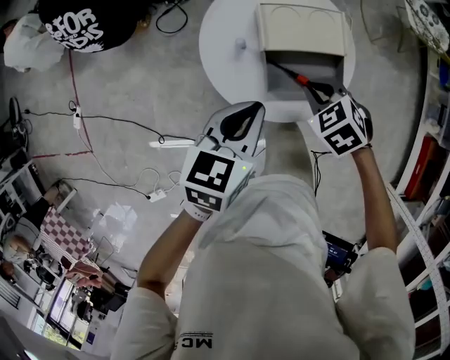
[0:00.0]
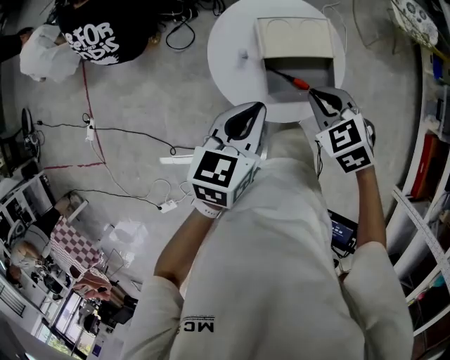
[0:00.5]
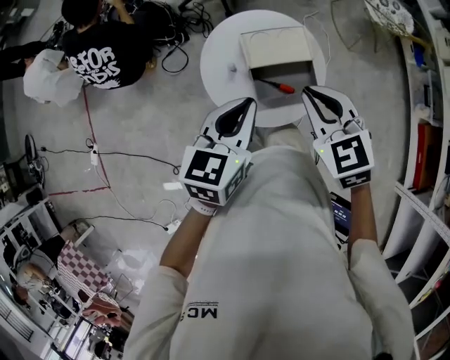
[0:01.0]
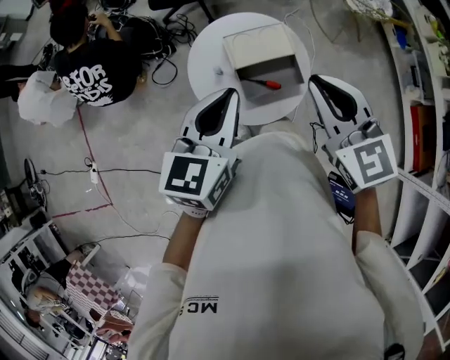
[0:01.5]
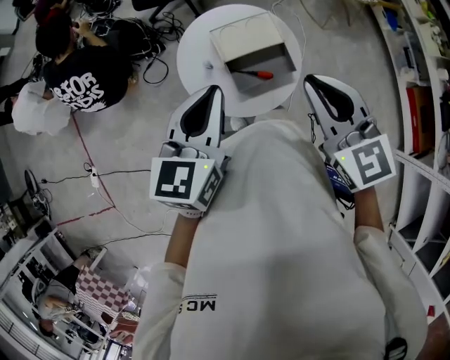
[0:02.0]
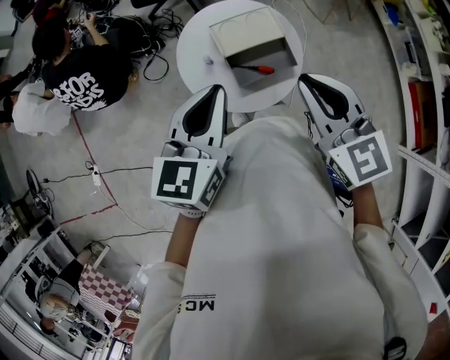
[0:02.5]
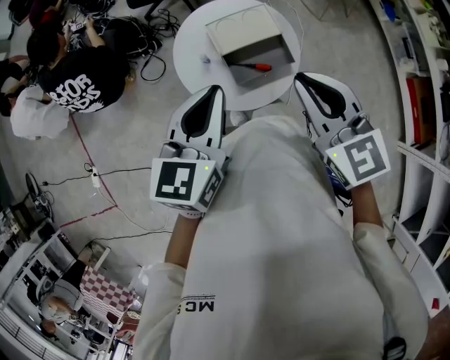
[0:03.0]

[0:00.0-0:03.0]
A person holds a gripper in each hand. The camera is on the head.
0:00.0 to 0:01.5: The right gripper is displaced upward by some 30 cm, and angles its fingers upward, by roughly 50 degrees. Meanwhile the left gripper heads upward, covering approximately 20 cm, and turns by approximately 20 degrees.
0:01.5 to 0:03.0: There are only small adjustments of the grippers.

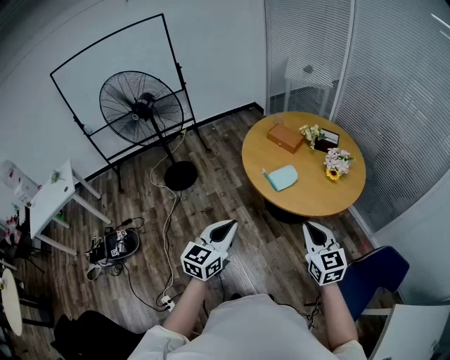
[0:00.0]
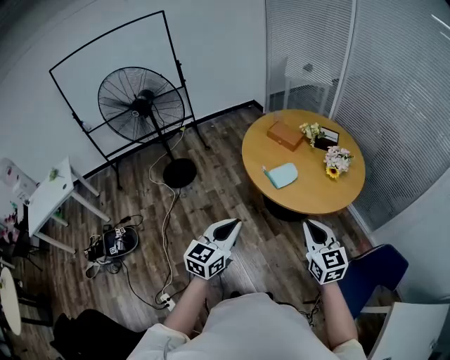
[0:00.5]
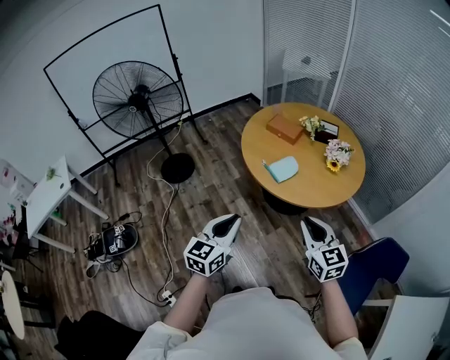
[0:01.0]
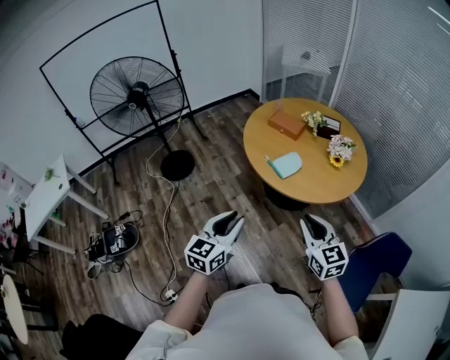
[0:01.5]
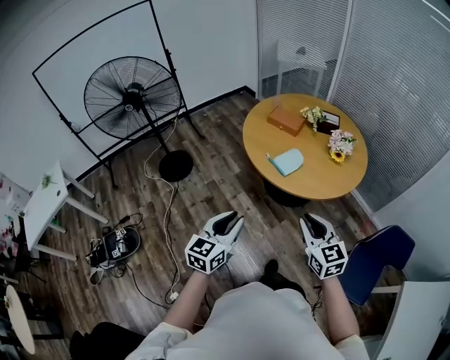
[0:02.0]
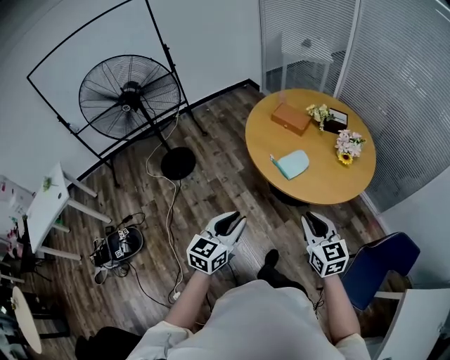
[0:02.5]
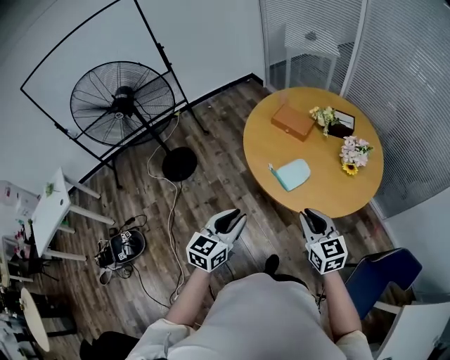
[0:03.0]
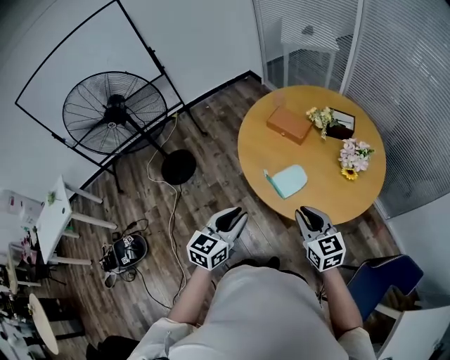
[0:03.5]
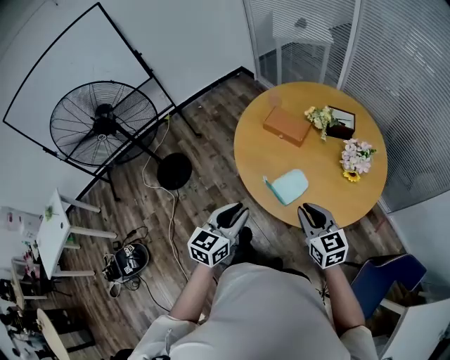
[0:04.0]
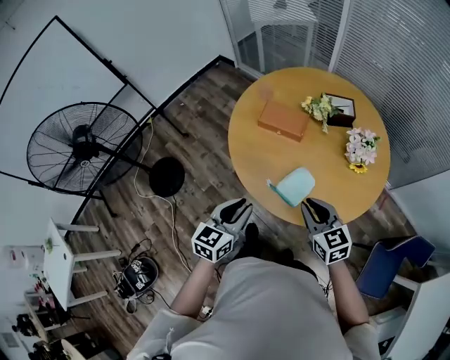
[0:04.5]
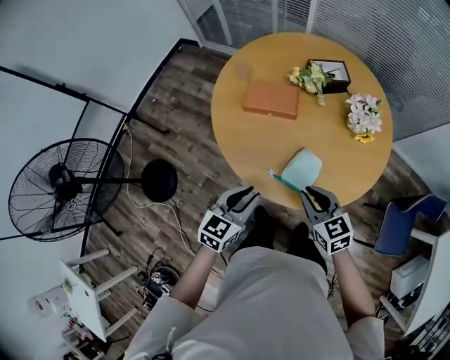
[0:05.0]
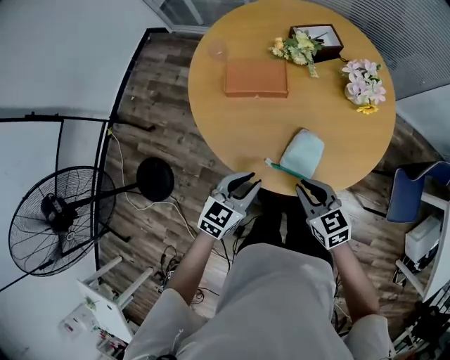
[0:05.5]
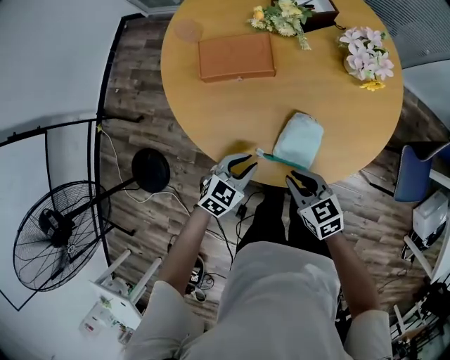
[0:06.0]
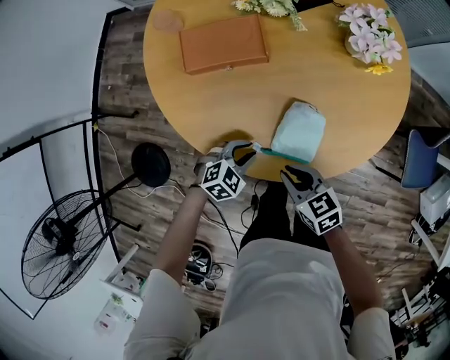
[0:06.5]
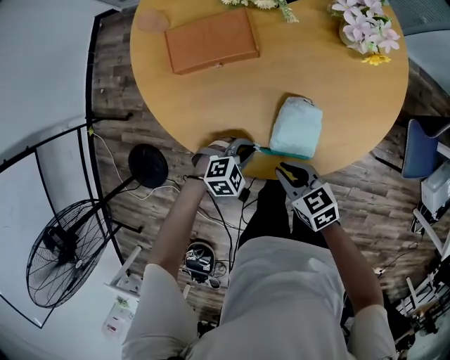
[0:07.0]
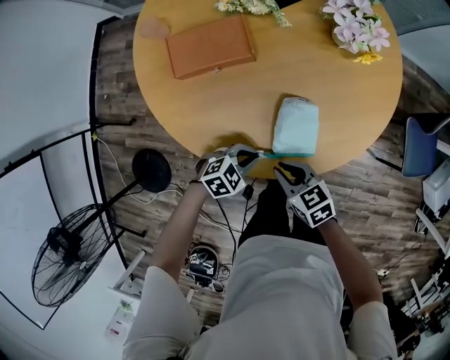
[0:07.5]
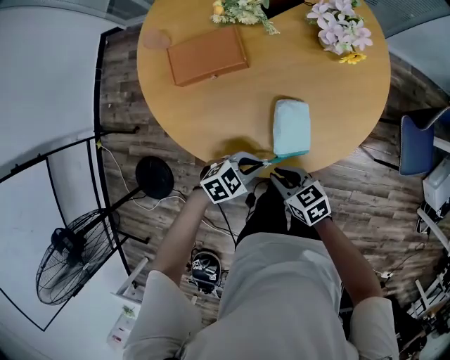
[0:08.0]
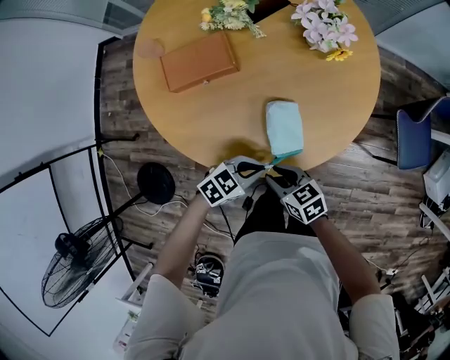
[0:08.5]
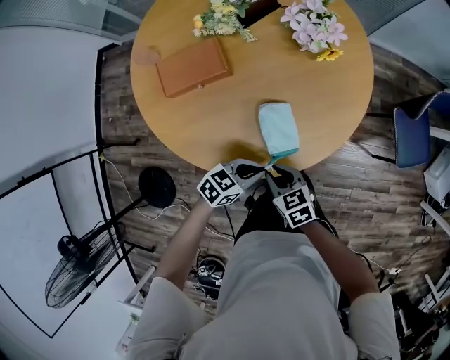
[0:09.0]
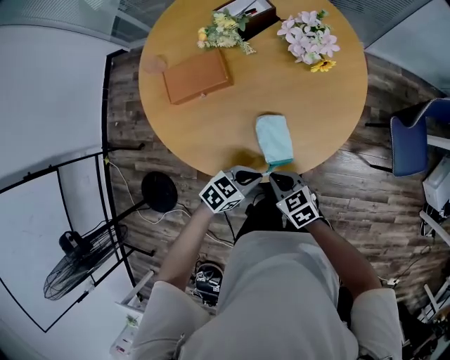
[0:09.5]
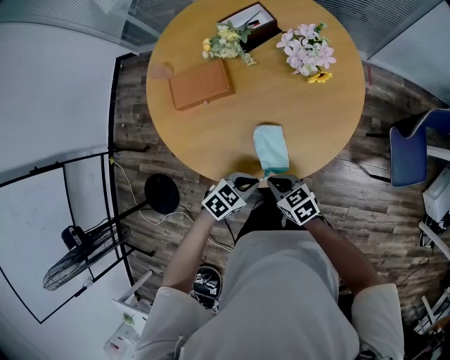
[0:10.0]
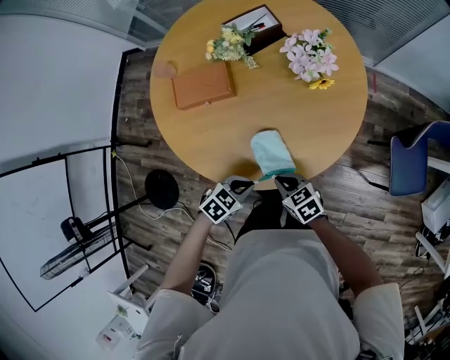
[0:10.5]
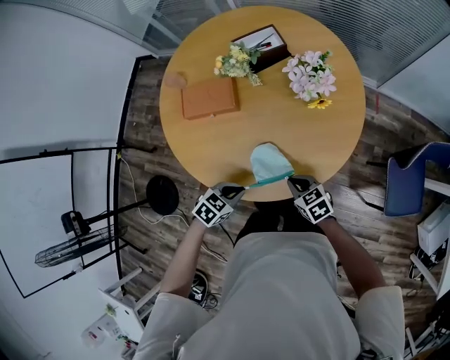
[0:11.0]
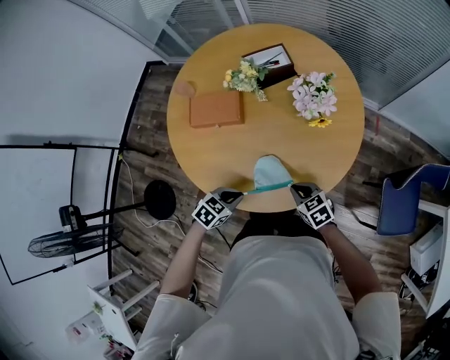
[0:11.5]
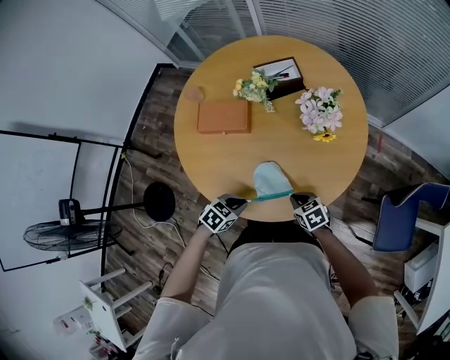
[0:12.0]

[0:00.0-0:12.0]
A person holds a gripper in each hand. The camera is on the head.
0:00.0 to 0:02.0: The grippers both shift to the left by roughly 10 cm.
0:02.0 to 0:04.0: The grippers both shift forward by about 35 cm.
0:04.0 to 0:06.0: The two grippers go some 30 cm downward. The right gripper turns by approximately 30 degrees; the left gripper swivels some 60 degrees.
0:06.0 to 0:08.0: The left gripper goes downward and returns, about 10 cm each way, and changes its angle by about 30 degrees, while the right gripper moves about 5 cm.
0:08.0 to 0:10.0: The left gripper shifts by approximately 10 cm. Meanwhile the right gripper shifts by roughly 10 cm.
0:10.0 to 0:12.0: The right gripper moves roughly 15 cm. Meanwhile the left gripper turns by about 20 degrees.

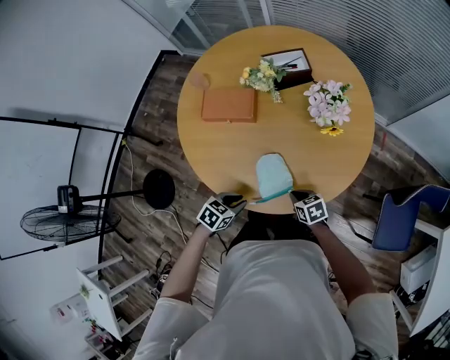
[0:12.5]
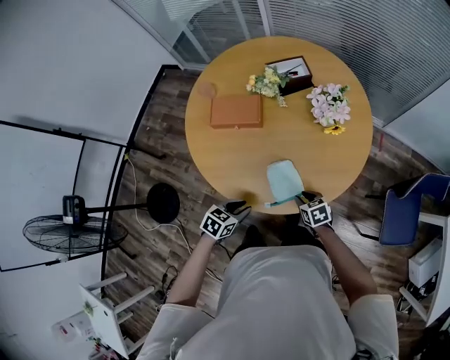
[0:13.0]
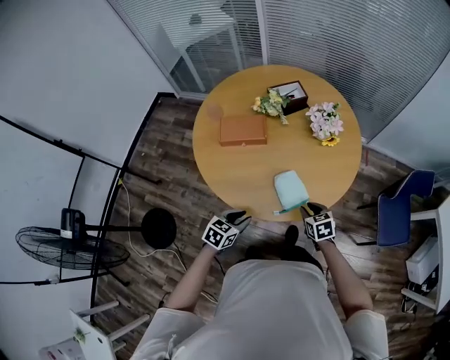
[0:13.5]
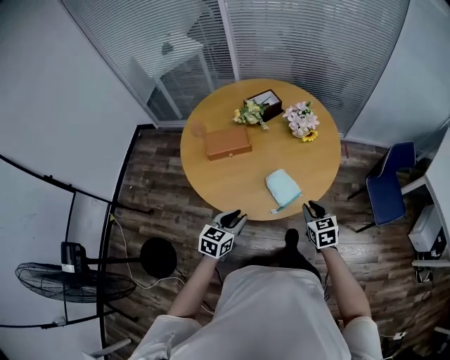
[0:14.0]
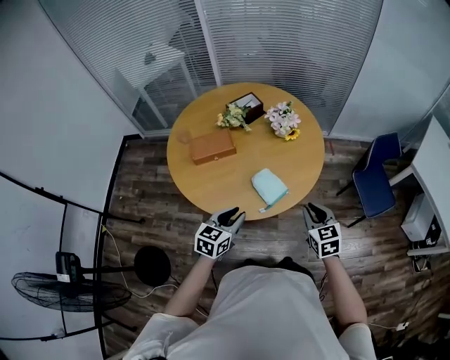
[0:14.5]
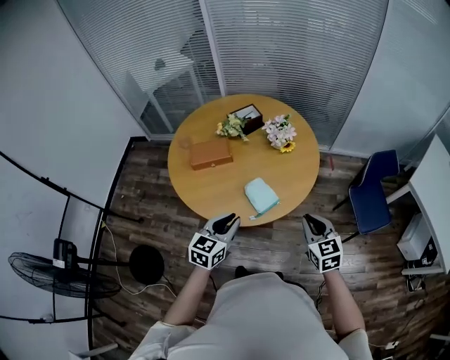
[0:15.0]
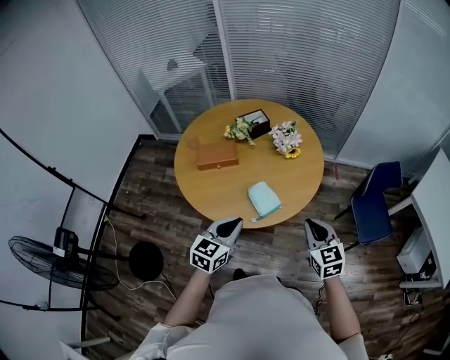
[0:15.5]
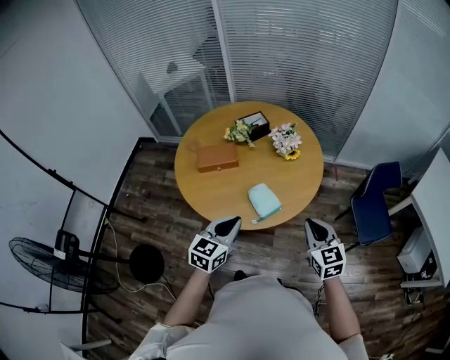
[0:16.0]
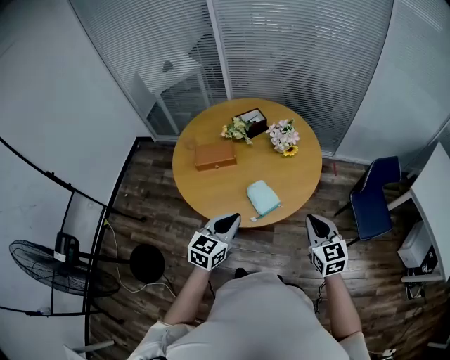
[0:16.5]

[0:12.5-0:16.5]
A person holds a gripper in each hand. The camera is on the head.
0:12.5 to 0:14.5: Both grippers move upward, some 25 cm. The left gripper turns by some 30 degrees. Meanwhile the right gripper swivels about 50 degrees.
0:14.5 to 0:16.5: The two grippers go about 10 cm upward and to the right. The left gripper closes its fingers.

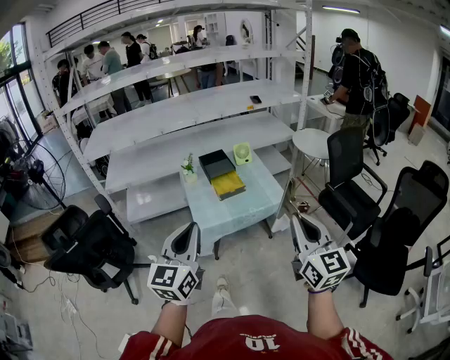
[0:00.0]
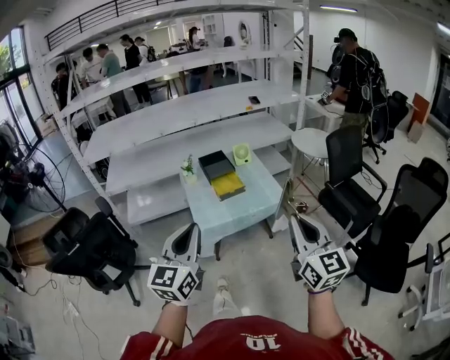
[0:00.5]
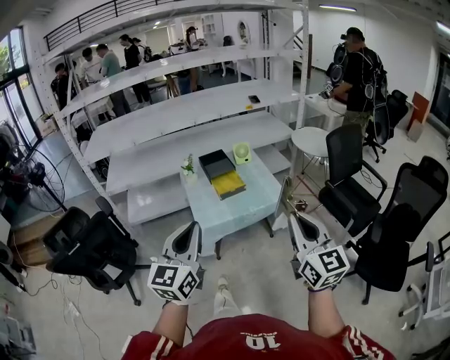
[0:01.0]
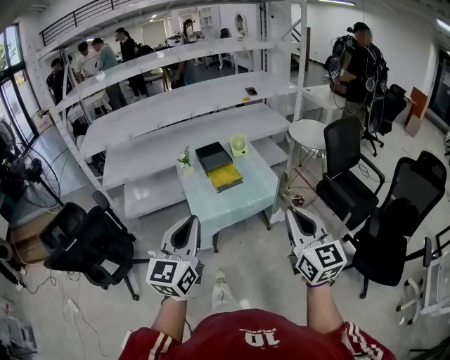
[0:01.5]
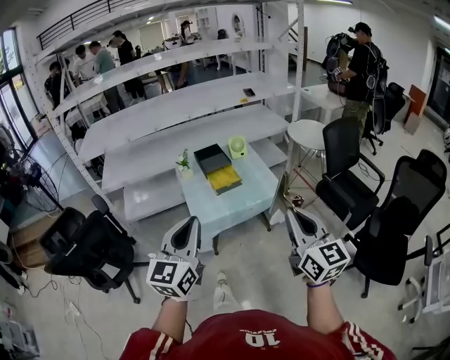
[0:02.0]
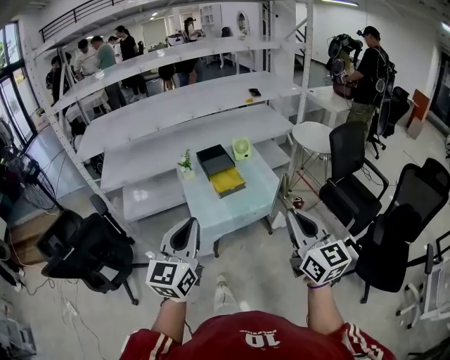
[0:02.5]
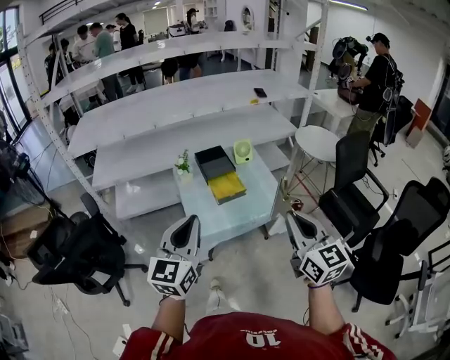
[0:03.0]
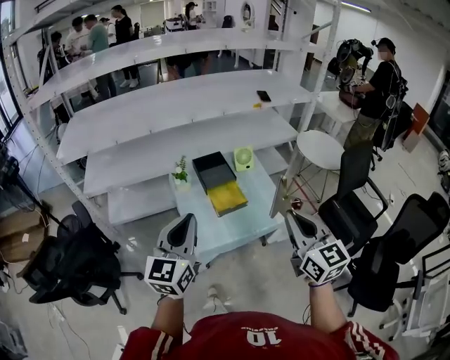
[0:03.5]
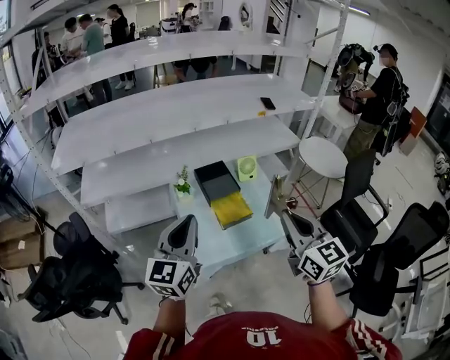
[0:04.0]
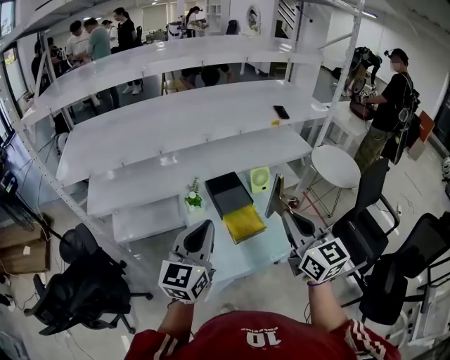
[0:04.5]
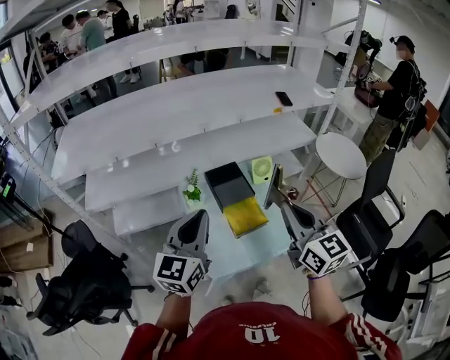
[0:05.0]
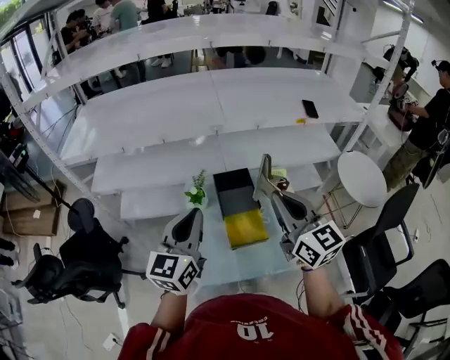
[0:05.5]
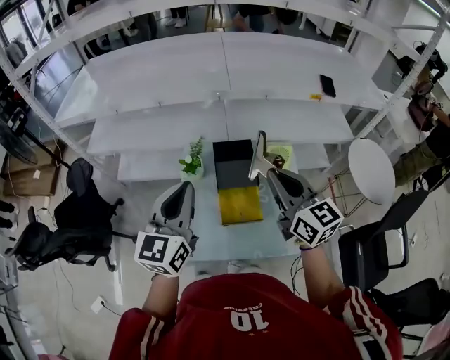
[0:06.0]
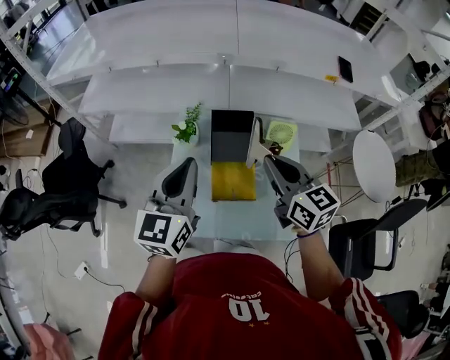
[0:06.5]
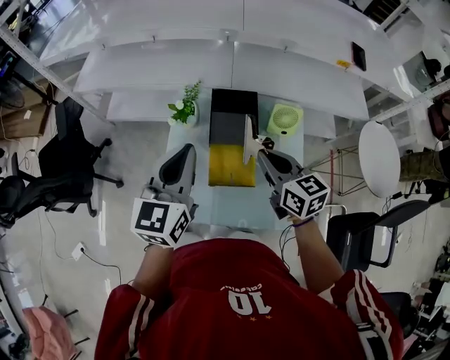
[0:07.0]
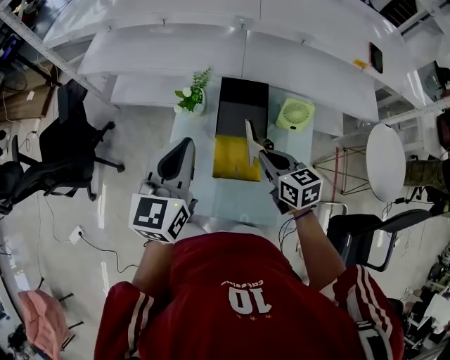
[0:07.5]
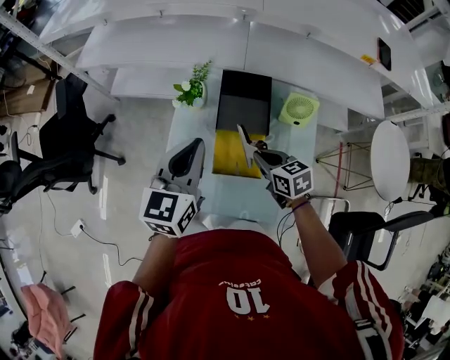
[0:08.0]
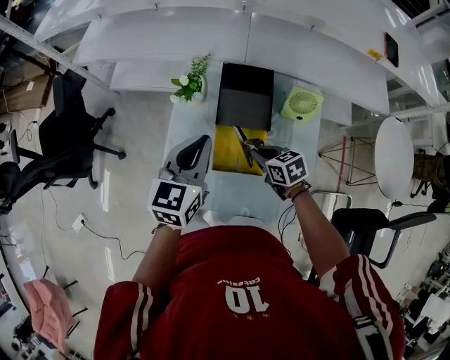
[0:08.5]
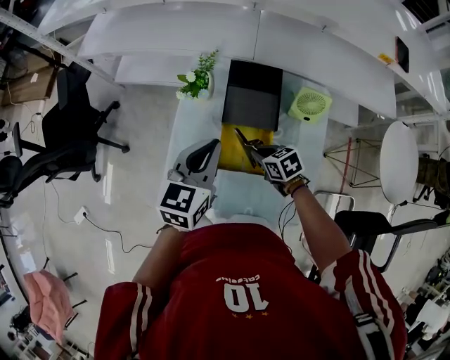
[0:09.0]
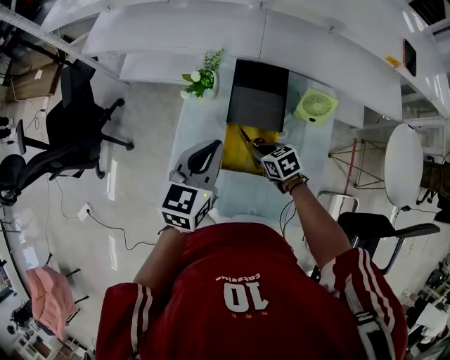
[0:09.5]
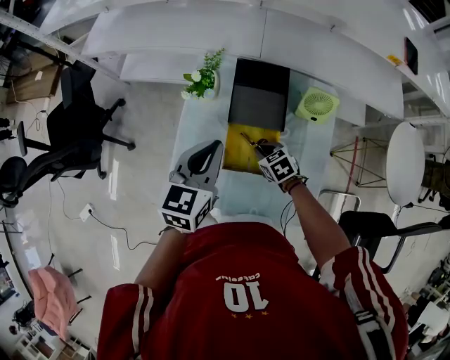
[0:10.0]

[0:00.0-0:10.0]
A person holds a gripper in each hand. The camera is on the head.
0:00.0 to 0:02.0: The grippers move only a little.
0:02.0 to 0:04.0: The two grippers go some 35 cm forward.
0:04.0 to 0:06.0: The two grippers go approximately 25 cm forward. The right gripper changes its angle by some 30 degrees.
0:06.0 to 0:08.0: The right gripper is displaced downward by about 35 cm, and tips its fingers downward by approximately 40 degrees. Meanwhile the left gripper shifts about 15 cm downward.
0:08.0 to 0:10.0: The right gripper heads downward, covering roughly 15 cm, and swivels some 20 degrees. Meanwhile the left gripper travels downward by approximately 5 cm.
